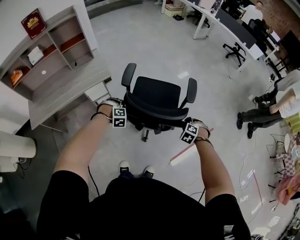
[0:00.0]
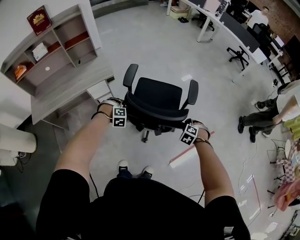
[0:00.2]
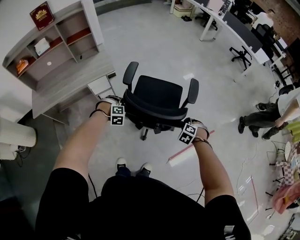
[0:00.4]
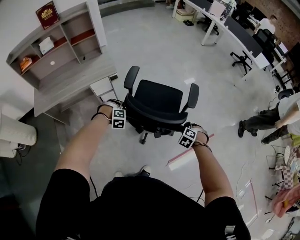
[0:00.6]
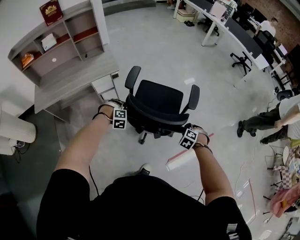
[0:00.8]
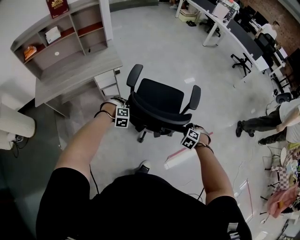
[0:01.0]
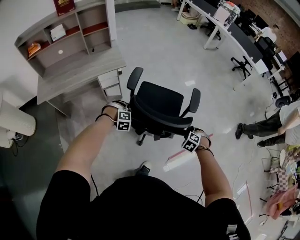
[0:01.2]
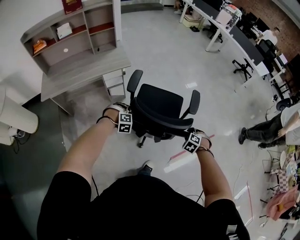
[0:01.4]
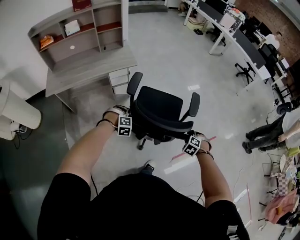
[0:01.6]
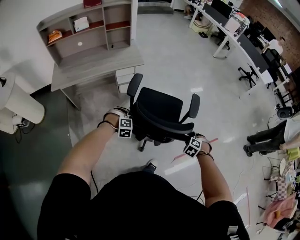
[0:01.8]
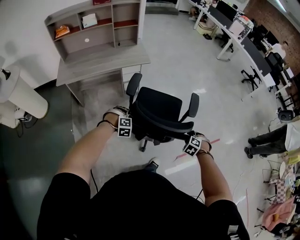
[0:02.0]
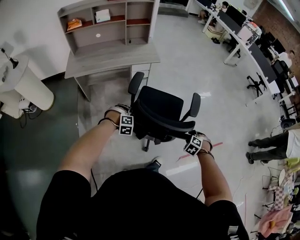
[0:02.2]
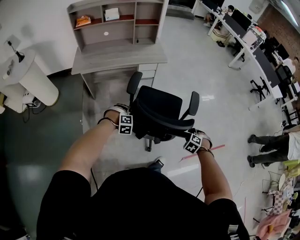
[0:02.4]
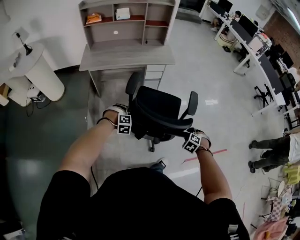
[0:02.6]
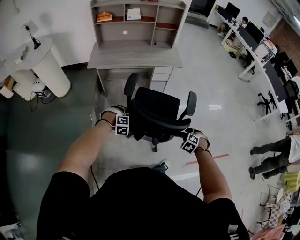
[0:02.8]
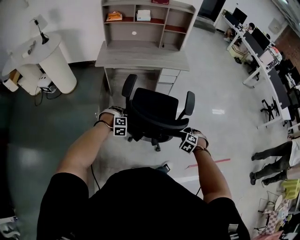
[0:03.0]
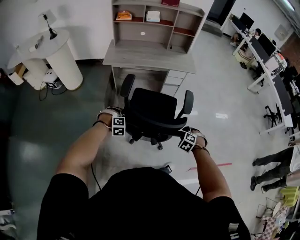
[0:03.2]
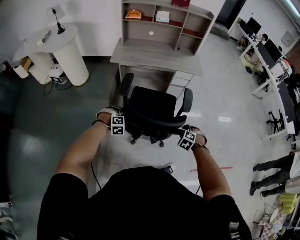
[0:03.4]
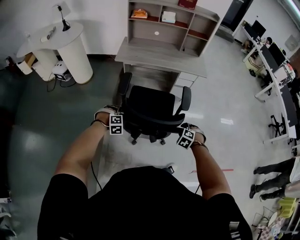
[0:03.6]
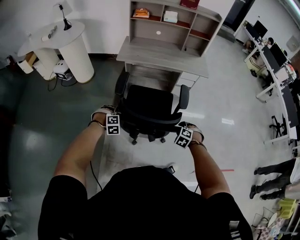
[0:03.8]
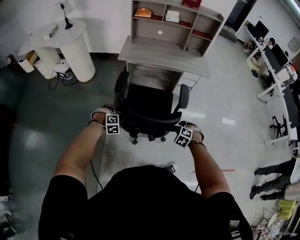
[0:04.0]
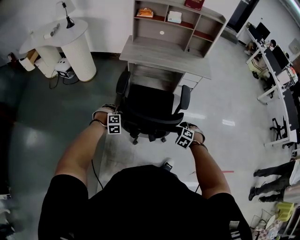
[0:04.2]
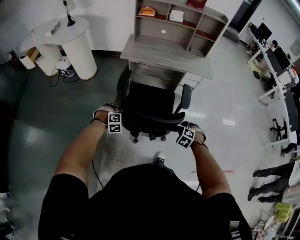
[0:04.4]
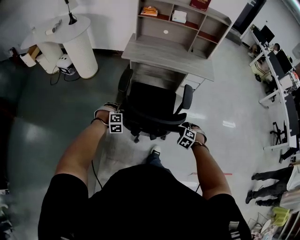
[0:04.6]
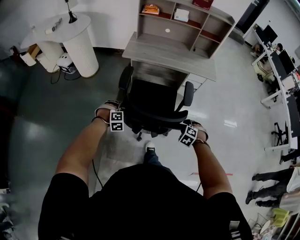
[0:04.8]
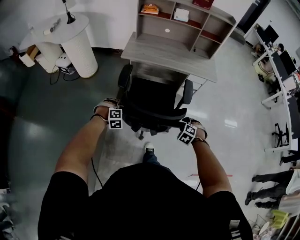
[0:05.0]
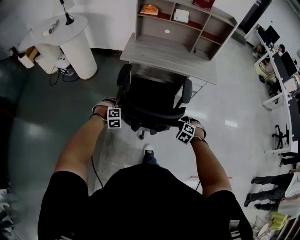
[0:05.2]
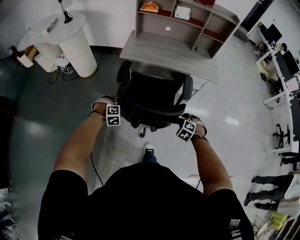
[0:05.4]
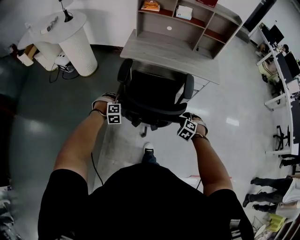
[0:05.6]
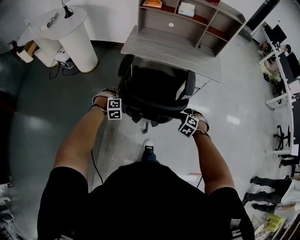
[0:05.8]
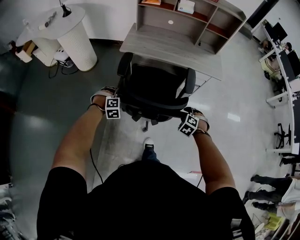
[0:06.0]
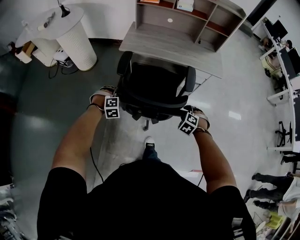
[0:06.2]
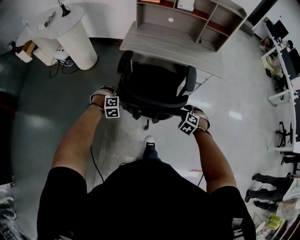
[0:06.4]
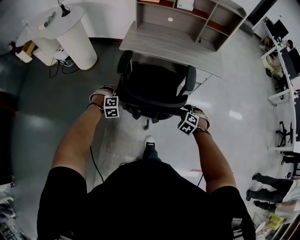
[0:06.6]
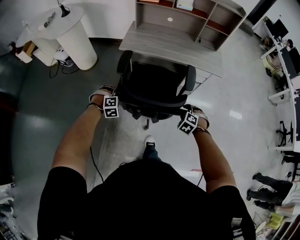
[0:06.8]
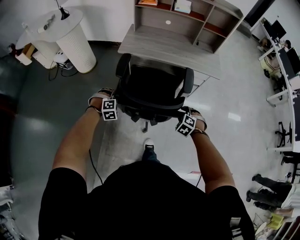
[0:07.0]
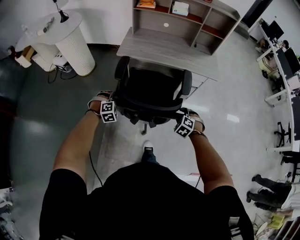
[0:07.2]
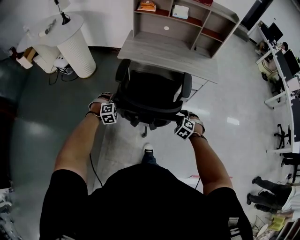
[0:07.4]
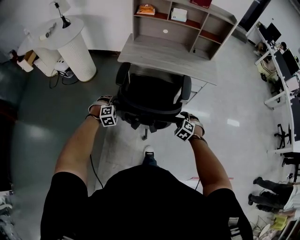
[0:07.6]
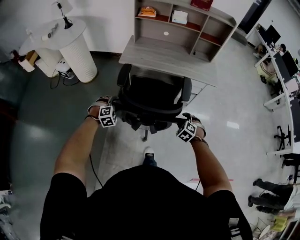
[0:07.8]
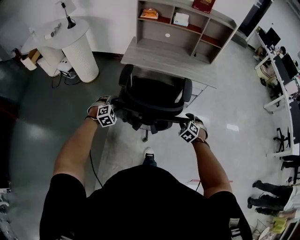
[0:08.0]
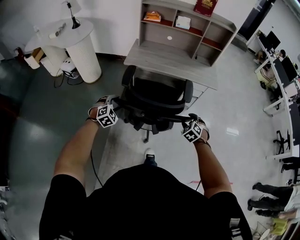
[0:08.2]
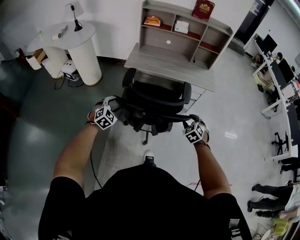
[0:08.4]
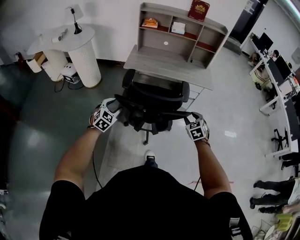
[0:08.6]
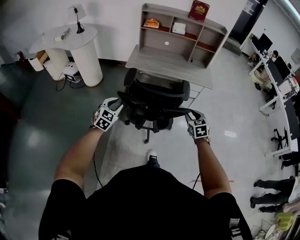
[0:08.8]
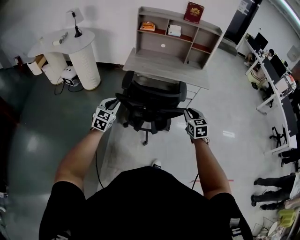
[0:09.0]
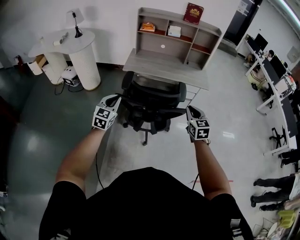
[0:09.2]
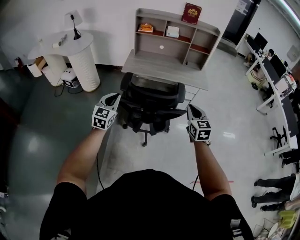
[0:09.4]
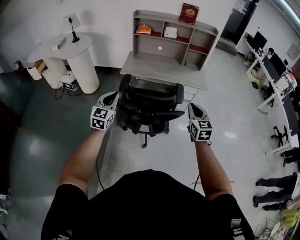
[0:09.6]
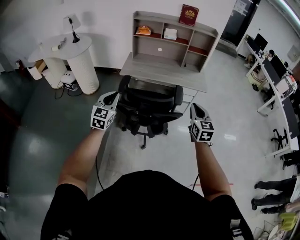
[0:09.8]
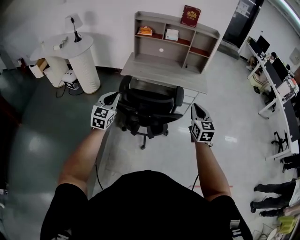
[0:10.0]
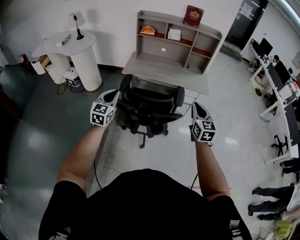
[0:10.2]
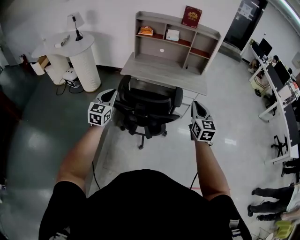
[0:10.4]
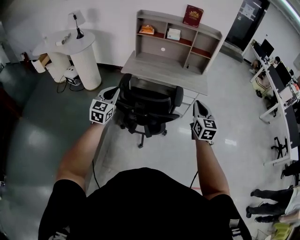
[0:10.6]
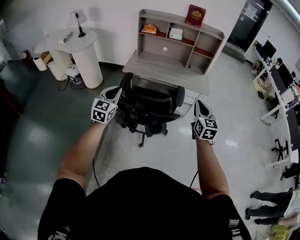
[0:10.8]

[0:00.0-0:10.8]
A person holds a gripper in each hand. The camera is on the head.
0:00.0 to 0:01.6: Both grippers move backward, about 20 cm.
0:01.6 to 0:03.0: The right gripper goes roughly 30 cm to the left, and turns by about 20 degrees, while the left gripper heads to the left and backward, covering some 40 cm, and rotates approximately 20 degrees.
0:03.0 to 0:04.6: The left gripper is displaced to the left by about 15 cm, while the right gripper heads to the left and forward, covering some 15 cm.
0:04.6 to 0:06.2: The grippers both shift forward by some 15 cm.
0:06.2 to 0:07.8: There are only small adjustments of the grippers.
0:07.8 to 0:09.2: The grippers both shift upward and backward by roughly 25 cm. The left gripper tilts its fingers about 40 degrees upward, and closes its fingers. The right gripper angles its fingers upward, by roughly 40 degrees, and closes up.
0:09.2 to 0:10.8: The right gripper is displaced to the right, upward and forward by approximately 15 cm, while the left gripper moves to the right and upward, roughly 10 cm.

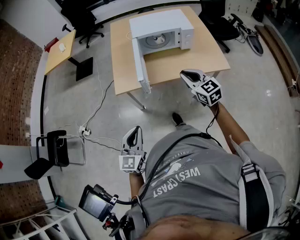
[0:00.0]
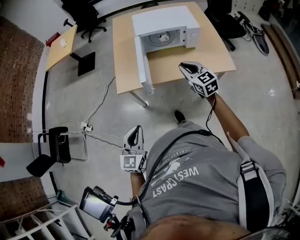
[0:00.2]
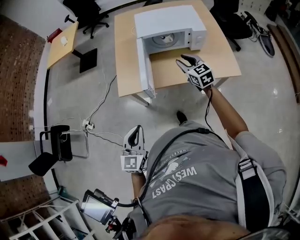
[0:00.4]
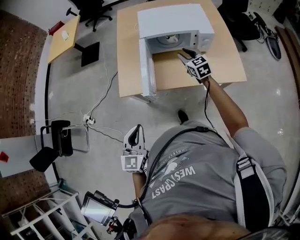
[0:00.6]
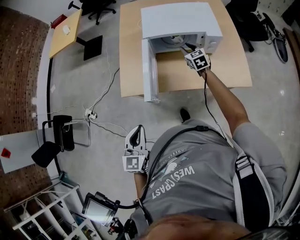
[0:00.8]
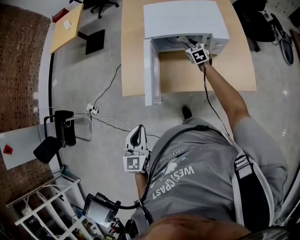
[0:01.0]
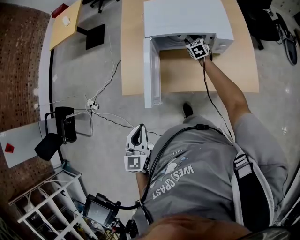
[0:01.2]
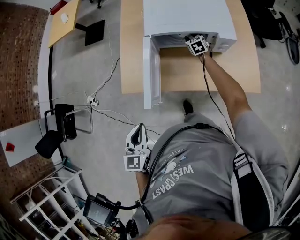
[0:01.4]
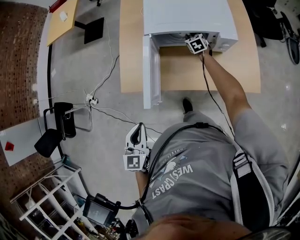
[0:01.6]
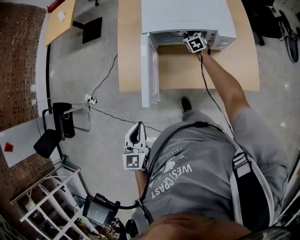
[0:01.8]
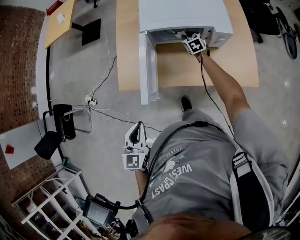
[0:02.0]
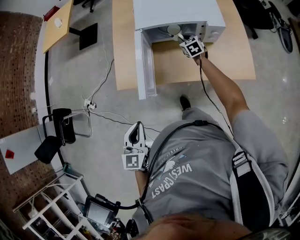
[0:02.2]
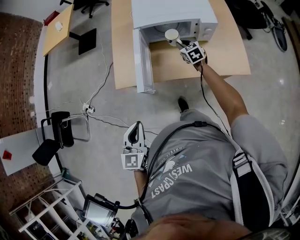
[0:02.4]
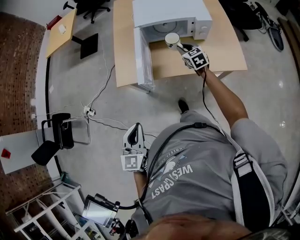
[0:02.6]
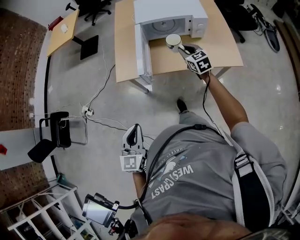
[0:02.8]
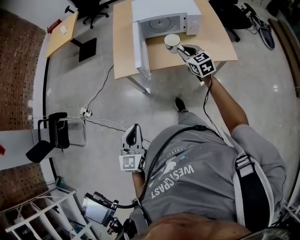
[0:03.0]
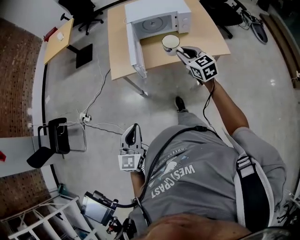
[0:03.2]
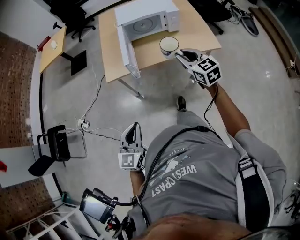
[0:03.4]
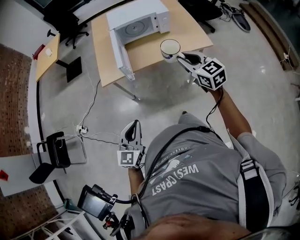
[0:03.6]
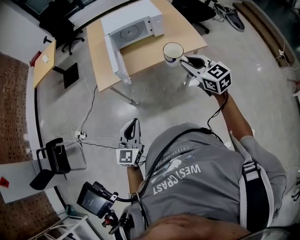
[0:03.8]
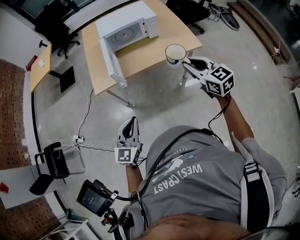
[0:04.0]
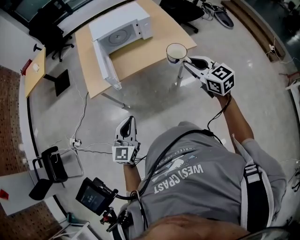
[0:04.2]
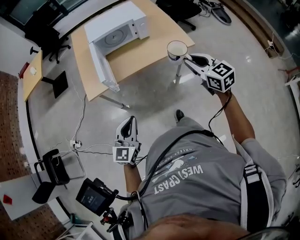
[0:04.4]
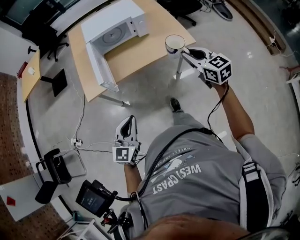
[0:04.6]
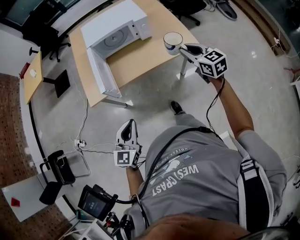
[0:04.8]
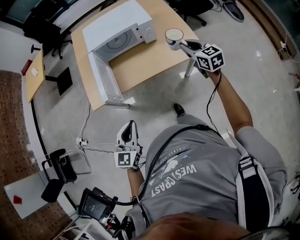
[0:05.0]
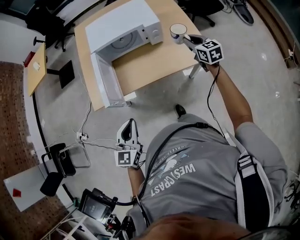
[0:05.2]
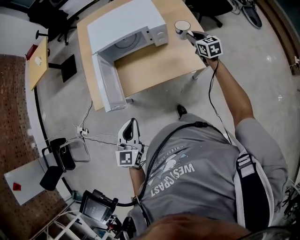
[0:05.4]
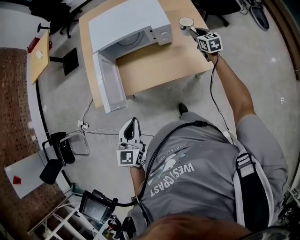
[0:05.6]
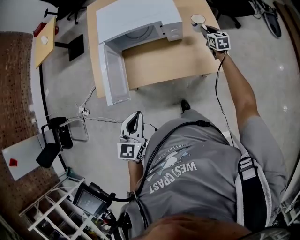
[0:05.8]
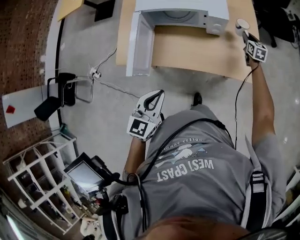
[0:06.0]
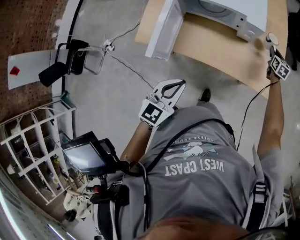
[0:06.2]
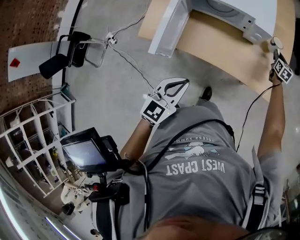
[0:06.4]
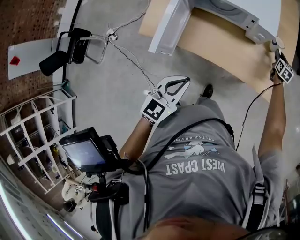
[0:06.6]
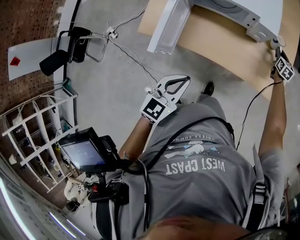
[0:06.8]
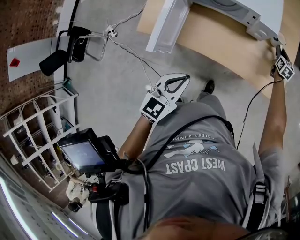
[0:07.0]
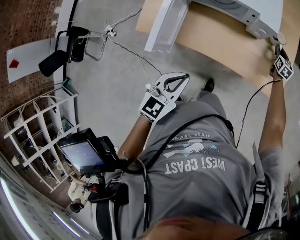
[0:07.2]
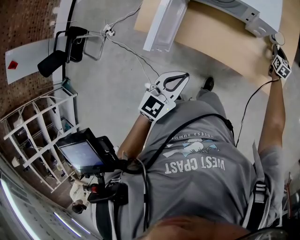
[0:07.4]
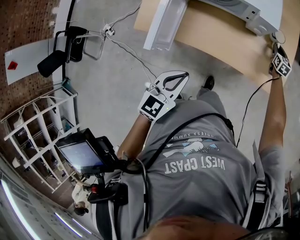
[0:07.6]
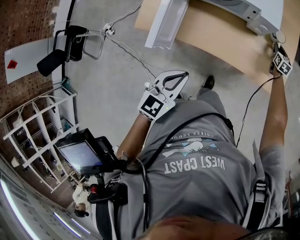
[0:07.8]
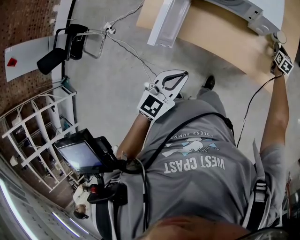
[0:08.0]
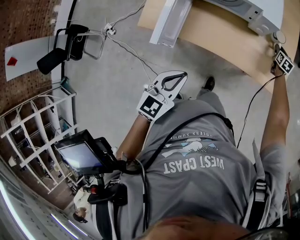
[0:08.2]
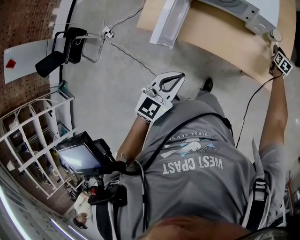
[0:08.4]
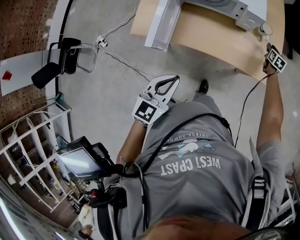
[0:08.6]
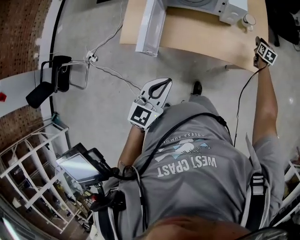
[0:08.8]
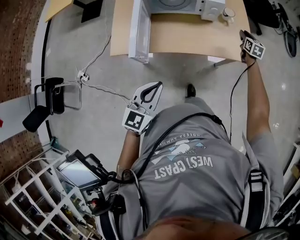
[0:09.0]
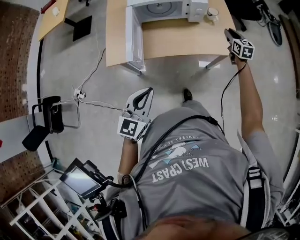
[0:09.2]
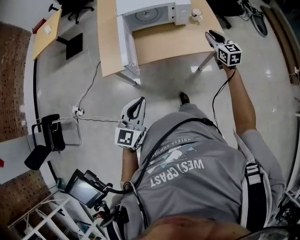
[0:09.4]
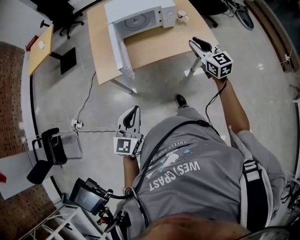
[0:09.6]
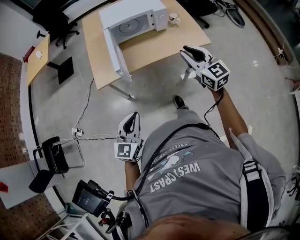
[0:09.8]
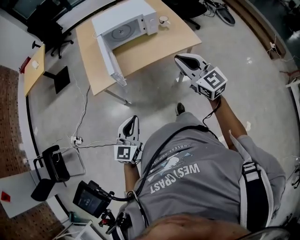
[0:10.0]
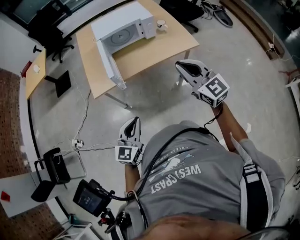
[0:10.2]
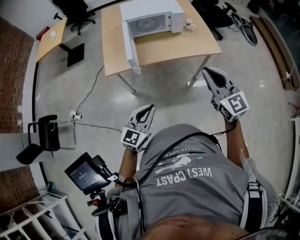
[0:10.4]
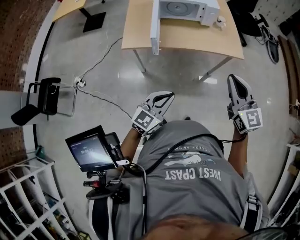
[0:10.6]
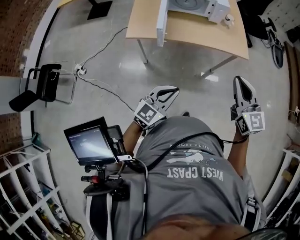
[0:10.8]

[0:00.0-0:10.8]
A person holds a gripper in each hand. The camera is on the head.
0:00.0 to 0:01.6: The right gripper shifts about 60 cm forward and downward, and points its fingers approximately 30 degrees further downward. The left gripper moves forward, approximately 30 cm, and changes its angle by approximately 20 degrees.
0:01.6 to 0:03.0: The right gripper travels backward and upward by approximately 50 cm, and turns by about 30 degrees, while the left gripper is displaced backward by some 30 cm.
0:03.0 to 0:04.6: The left gripper travels to the right by approximately 10 cm, and turns by roughly 20 degrees, while the right gripper moves to the right and backward, some 25 cm.
0:04.6 to 0:06.2: The right gripper heads forward and downward, covering some 60 cm; the left gripper goes roughly 30 cm forward, and swivels some 20 degrees.
0:06.2 to 0:07.8: The right gripper is displaced downward by about 10 cm.
0:07.8 to 0:09.2: The right gripper moves backward and upward, approximately 35 cm, while the left gripper heads backward and to the left, covering roughly 20 cm, and rotates roughly 20 degrees.
0:09.2 to 0:10.8: The right gripper heads backward and upward, covering some 50 cm, and turns by roughly 30 degrees. The left gripper travels backward by some 20 cm.

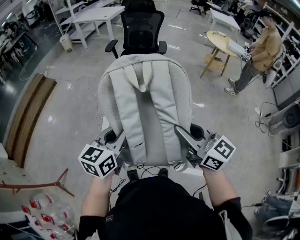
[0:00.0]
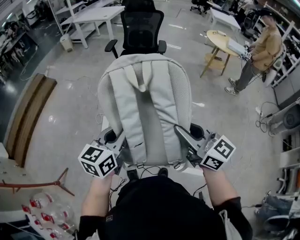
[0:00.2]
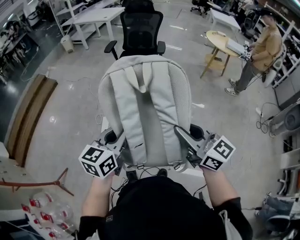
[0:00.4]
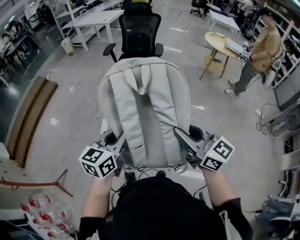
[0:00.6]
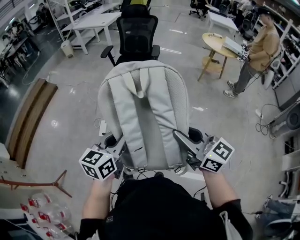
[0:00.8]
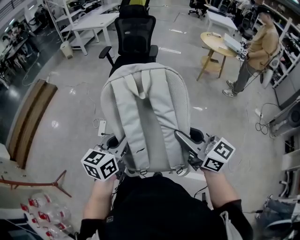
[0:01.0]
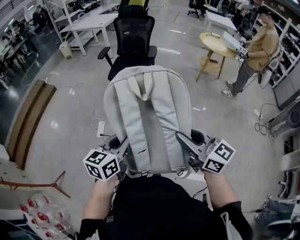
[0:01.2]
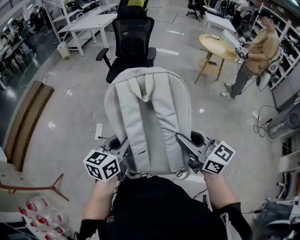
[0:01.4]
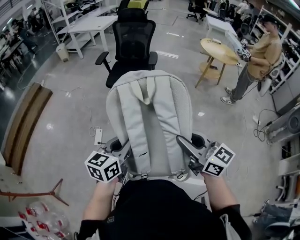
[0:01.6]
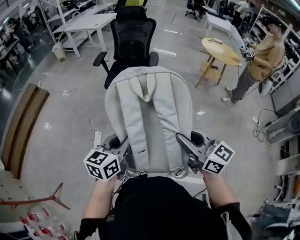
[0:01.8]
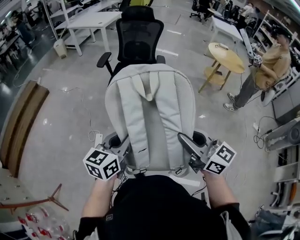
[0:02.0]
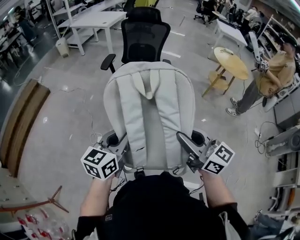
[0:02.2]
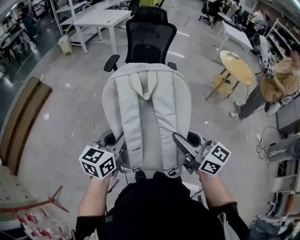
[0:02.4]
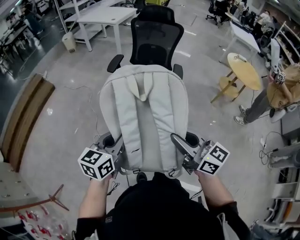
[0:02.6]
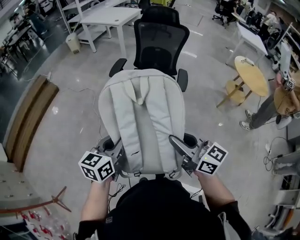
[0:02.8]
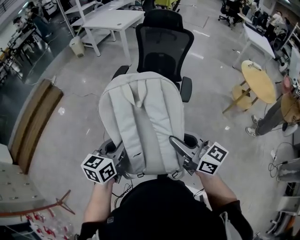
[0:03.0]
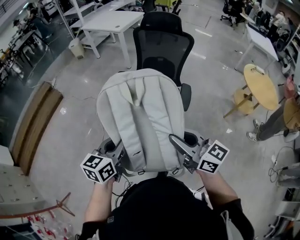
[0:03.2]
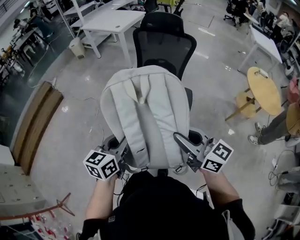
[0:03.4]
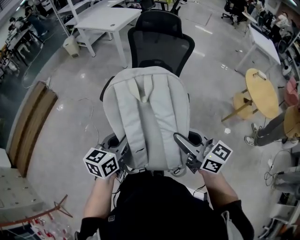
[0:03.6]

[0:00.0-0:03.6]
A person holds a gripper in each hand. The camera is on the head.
0:00.0 to 0:01.8: Both grippers travel together forward and to the right, approximately 15 cm.
0:01.8 to 0:03.6: The pair of grippers is taken forward, some 60 cm.
